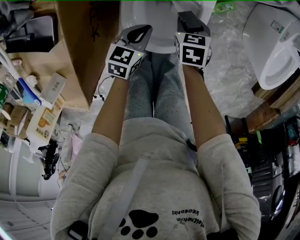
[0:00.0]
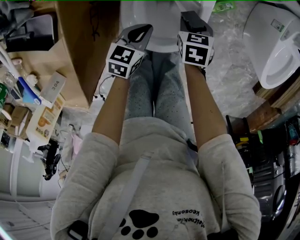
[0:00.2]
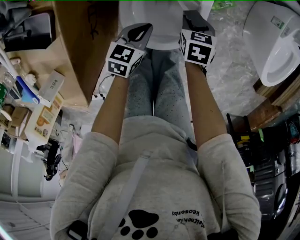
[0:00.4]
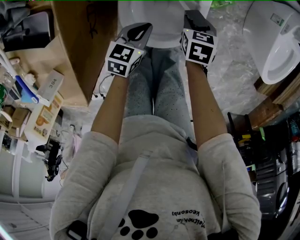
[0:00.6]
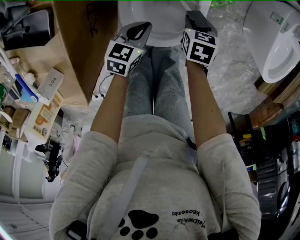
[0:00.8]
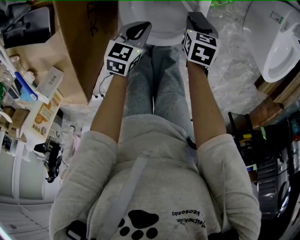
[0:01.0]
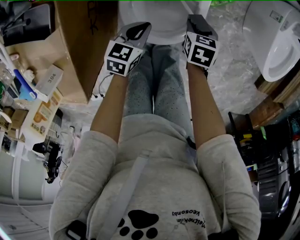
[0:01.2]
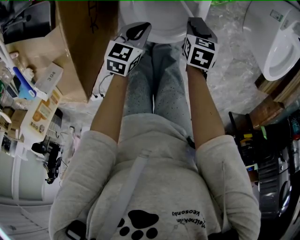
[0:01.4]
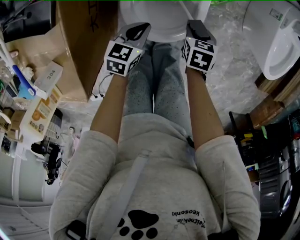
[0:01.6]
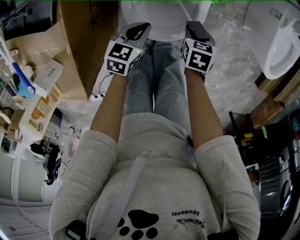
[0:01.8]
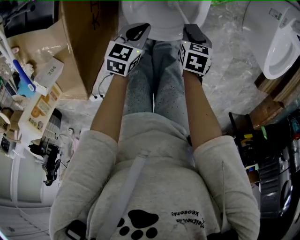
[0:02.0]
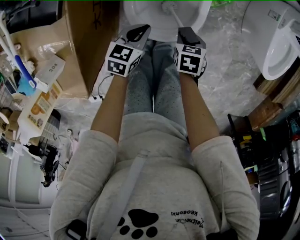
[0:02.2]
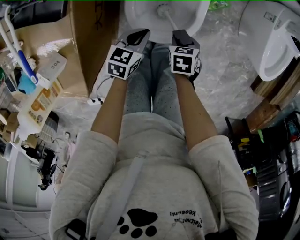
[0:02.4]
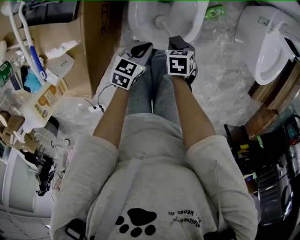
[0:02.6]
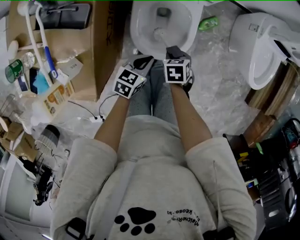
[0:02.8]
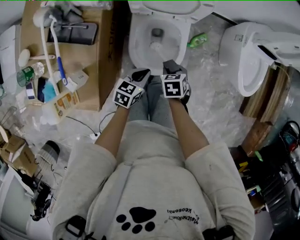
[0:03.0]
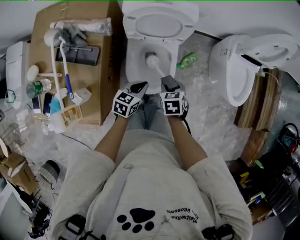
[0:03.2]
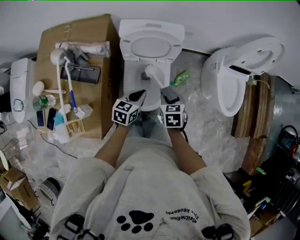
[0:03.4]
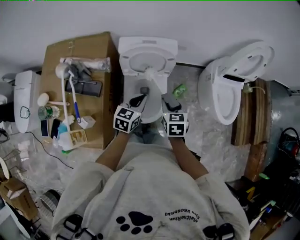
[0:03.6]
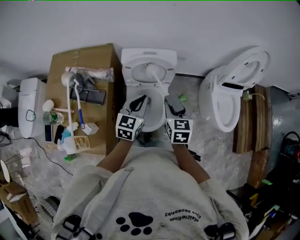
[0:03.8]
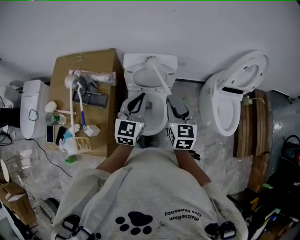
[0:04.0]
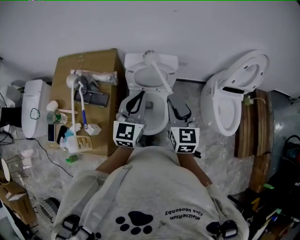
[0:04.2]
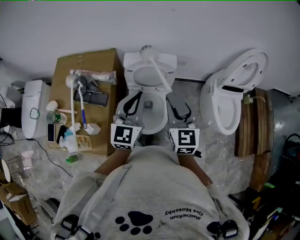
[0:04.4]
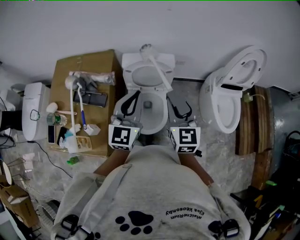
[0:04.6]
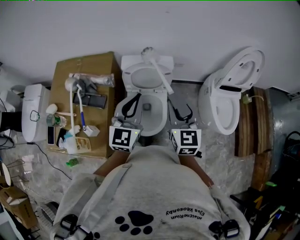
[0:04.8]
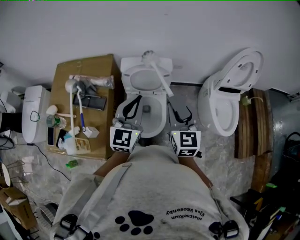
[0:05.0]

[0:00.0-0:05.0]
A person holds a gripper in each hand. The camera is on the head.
0.0 to 1.6 s: The left gripper changes place by some 5 cm. The right gripper is displaced to the right and backward by approximately 10 cm.
1.6 to 3.4 s: The grippers both shift upward by approximately 30 cm.
3.4 to 5.0 s: The two grippers go about 30 cm upward. The left gripper turns by about 40 degrees, while the right gripper angles its fingers upward, by approximately 40 degrees.

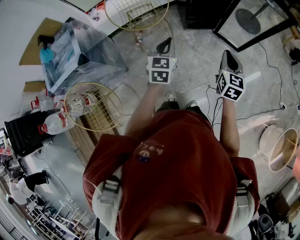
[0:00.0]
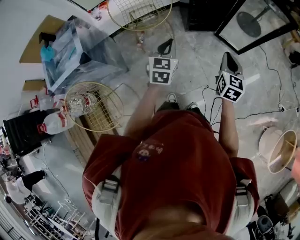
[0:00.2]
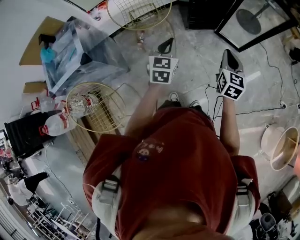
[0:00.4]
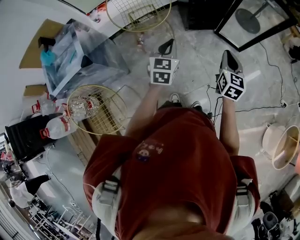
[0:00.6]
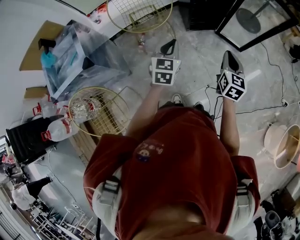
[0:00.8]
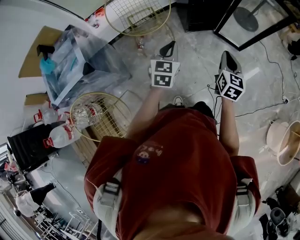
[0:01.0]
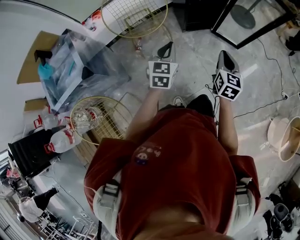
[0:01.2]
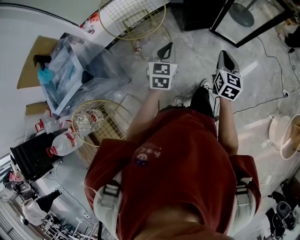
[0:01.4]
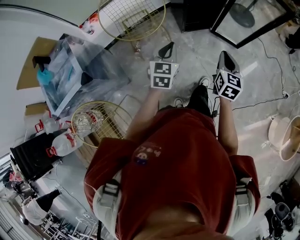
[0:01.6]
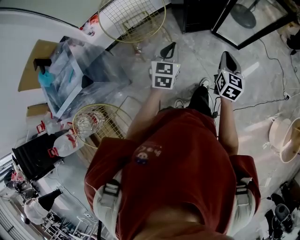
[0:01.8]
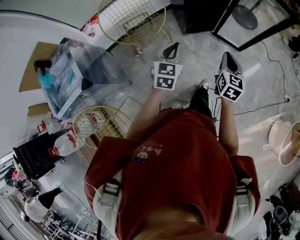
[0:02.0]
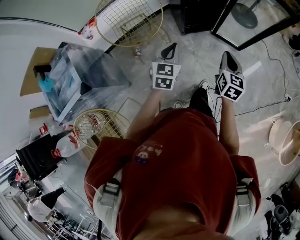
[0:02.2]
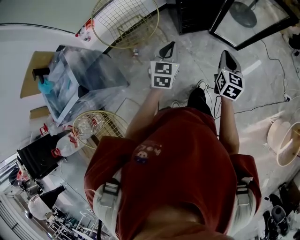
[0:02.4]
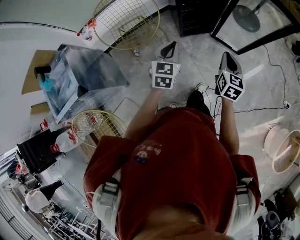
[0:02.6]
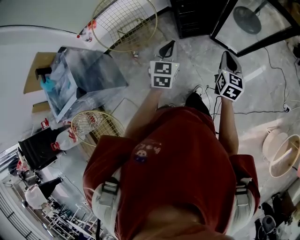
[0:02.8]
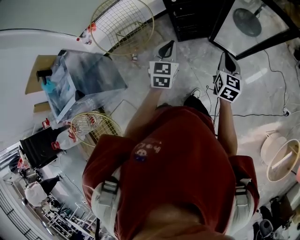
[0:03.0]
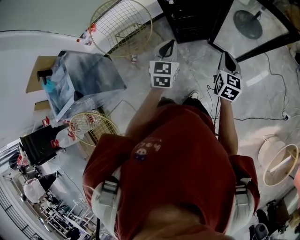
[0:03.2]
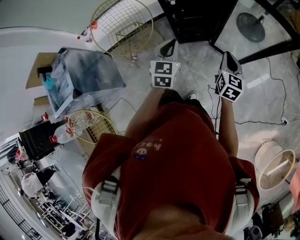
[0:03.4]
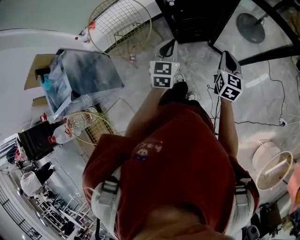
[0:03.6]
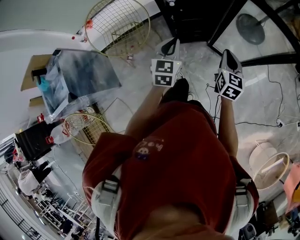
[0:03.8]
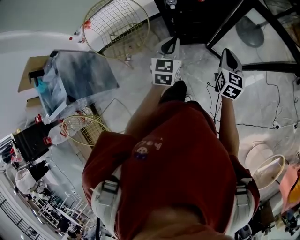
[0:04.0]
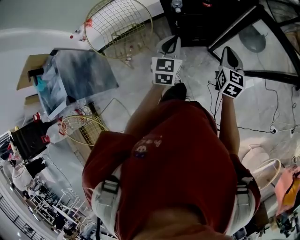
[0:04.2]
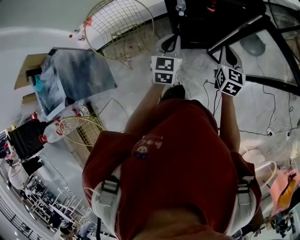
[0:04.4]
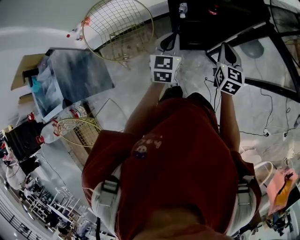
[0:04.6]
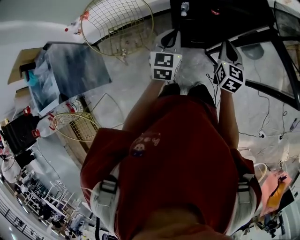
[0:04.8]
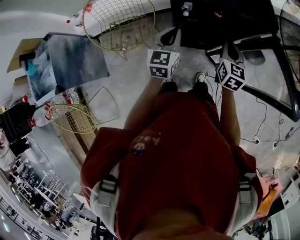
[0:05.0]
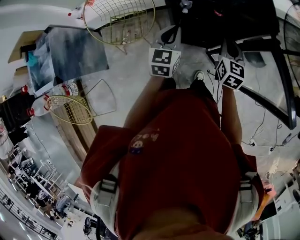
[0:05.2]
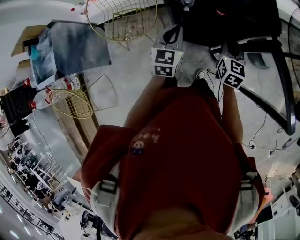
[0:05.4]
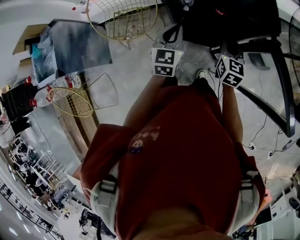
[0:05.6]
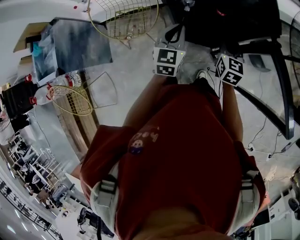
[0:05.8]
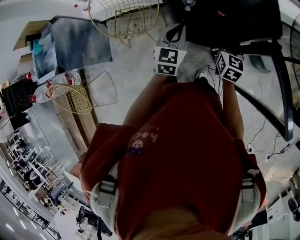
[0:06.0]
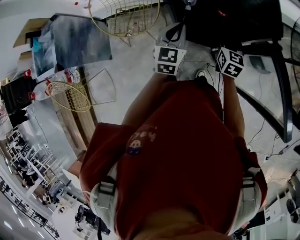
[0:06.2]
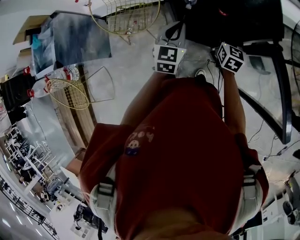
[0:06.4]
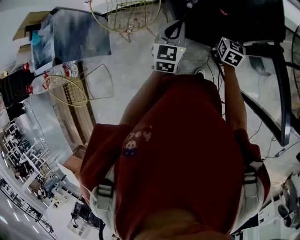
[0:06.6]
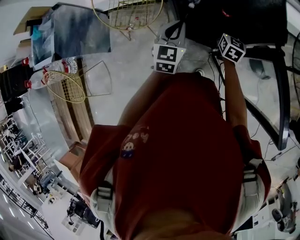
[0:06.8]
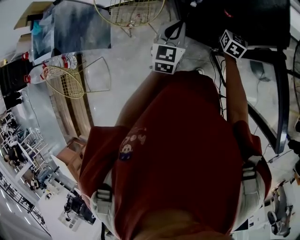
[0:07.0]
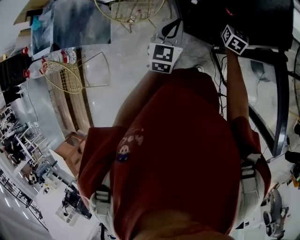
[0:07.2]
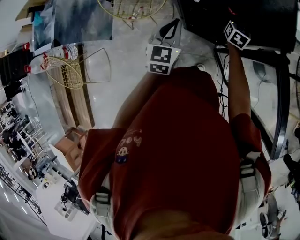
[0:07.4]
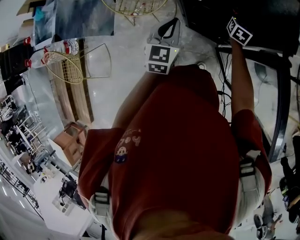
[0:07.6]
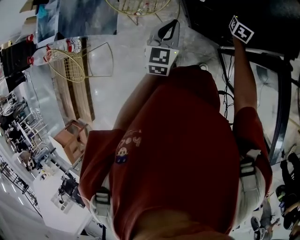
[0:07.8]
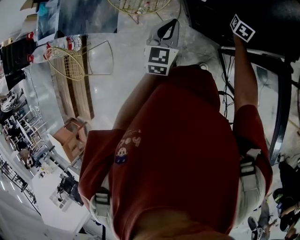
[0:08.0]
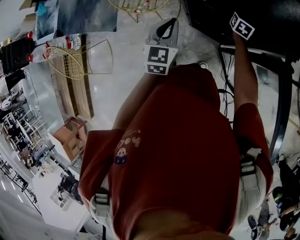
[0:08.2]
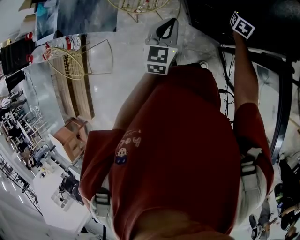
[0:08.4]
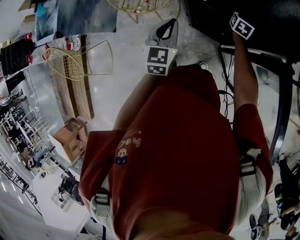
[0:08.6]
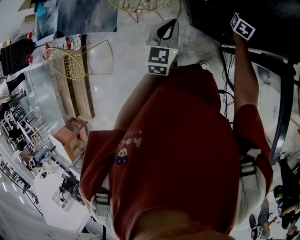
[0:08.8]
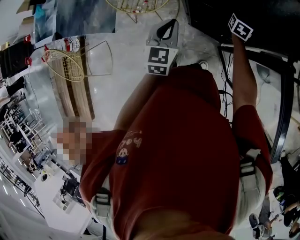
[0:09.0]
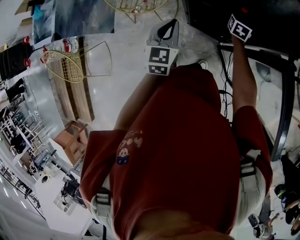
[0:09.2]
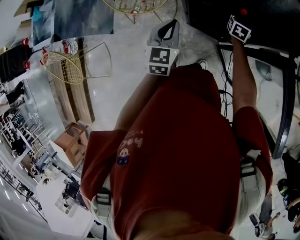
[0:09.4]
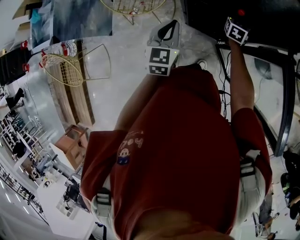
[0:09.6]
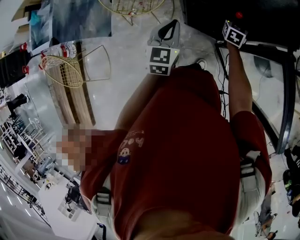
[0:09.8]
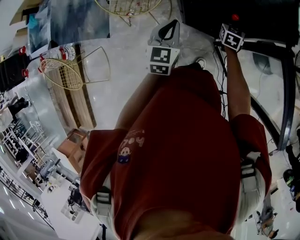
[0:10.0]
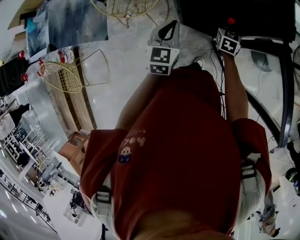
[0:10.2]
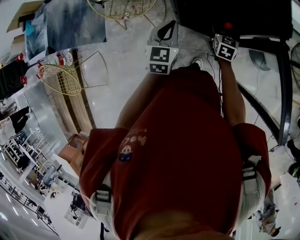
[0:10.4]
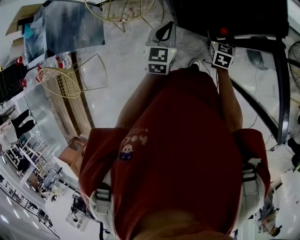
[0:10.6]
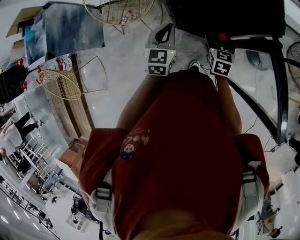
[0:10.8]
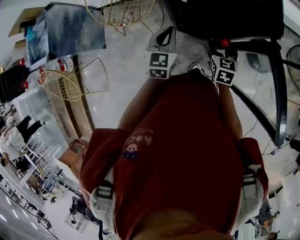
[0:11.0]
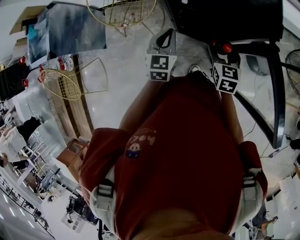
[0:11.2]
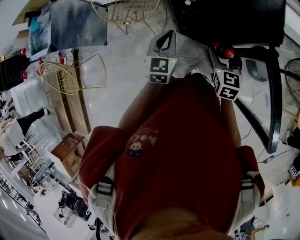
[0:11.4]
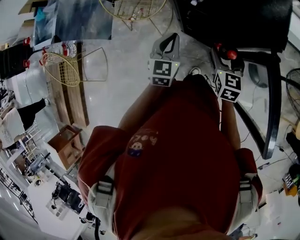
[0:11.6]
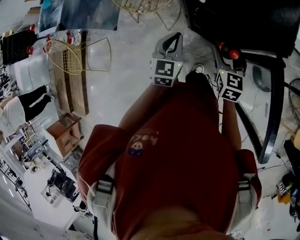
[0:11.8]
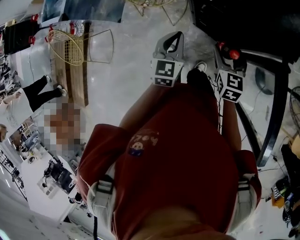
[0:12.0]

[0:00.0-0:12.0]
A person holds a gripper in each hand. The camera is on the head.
0.0 to 1.6 s: Both grippers travel together to the left, approximately 5 cm.
1.6 to 3.0 s: The grippers both shift forward and to the right by approximately 25 cm.
3.0 to 4.4 s: Both grippers travel together forward, about 20 cm.
4.4 to 6.0 s: The right gripper shifts approximately 15 cm forward and downward. The left gripper moves forward and to the right, some 10 cm.
6.0 to 7.6 s: The right gripper moves forward and downward, roughly 20 cm, and opens up.
7.6 to 9.0 s: The grippers stay close to where they were, moving slightly.
9.0 to 10.4 s: The right gripper goes some 15 cm backward.
10.4 to 12.0 s: The right gripper travels upward and backward by roughly 15 cm, and rotates approximately 20 degrees, while the left gripper heads backward, covering some 5 cm.

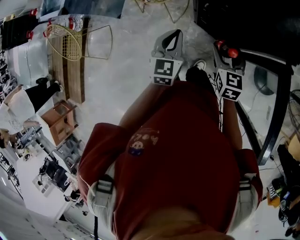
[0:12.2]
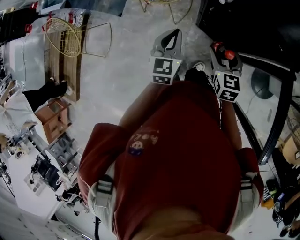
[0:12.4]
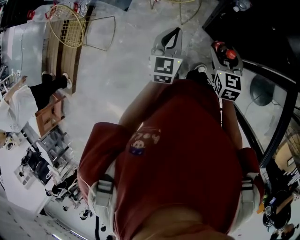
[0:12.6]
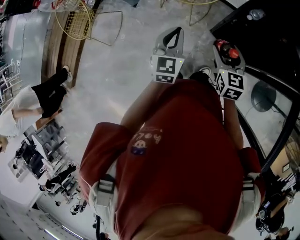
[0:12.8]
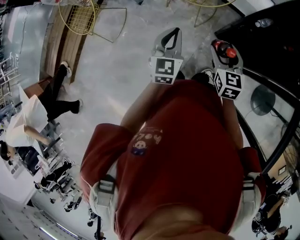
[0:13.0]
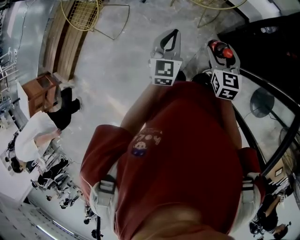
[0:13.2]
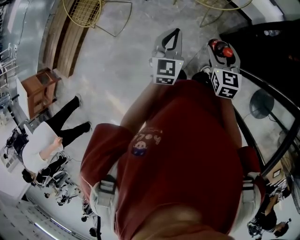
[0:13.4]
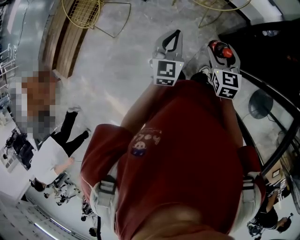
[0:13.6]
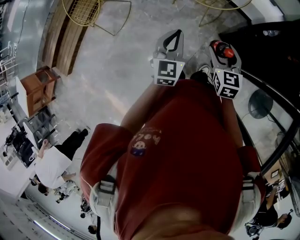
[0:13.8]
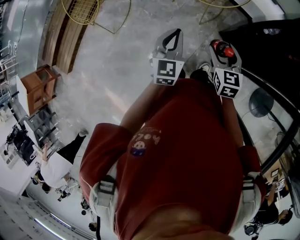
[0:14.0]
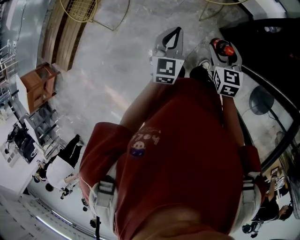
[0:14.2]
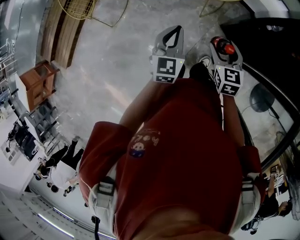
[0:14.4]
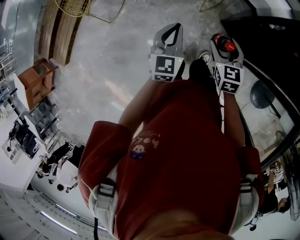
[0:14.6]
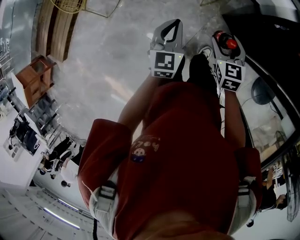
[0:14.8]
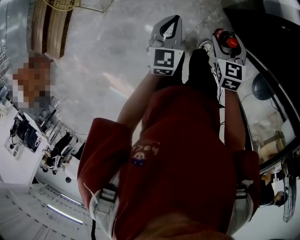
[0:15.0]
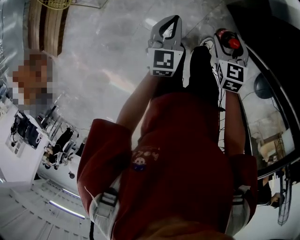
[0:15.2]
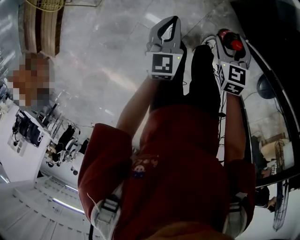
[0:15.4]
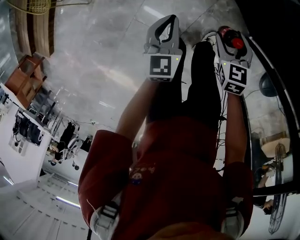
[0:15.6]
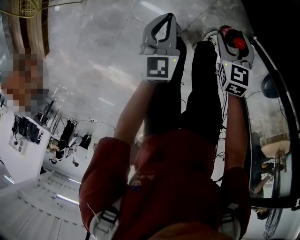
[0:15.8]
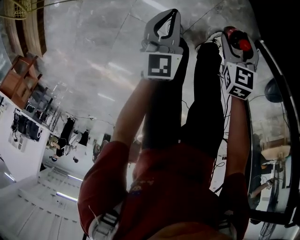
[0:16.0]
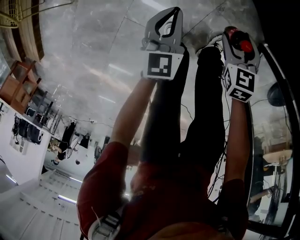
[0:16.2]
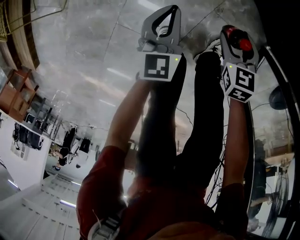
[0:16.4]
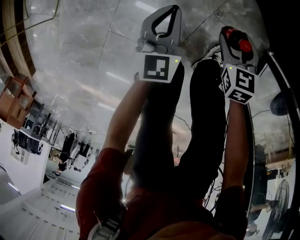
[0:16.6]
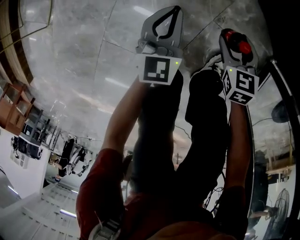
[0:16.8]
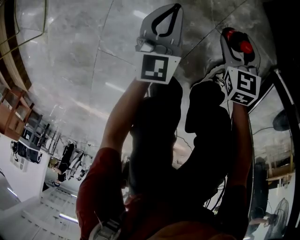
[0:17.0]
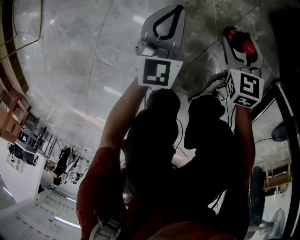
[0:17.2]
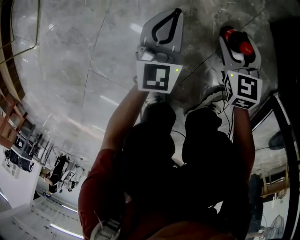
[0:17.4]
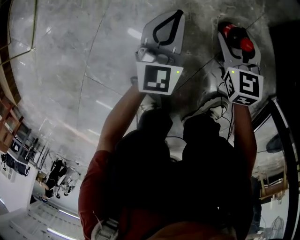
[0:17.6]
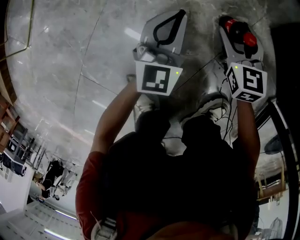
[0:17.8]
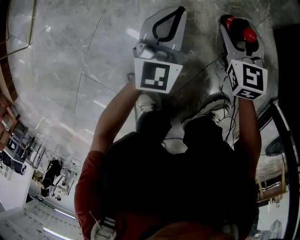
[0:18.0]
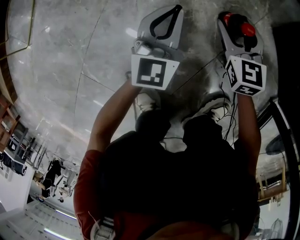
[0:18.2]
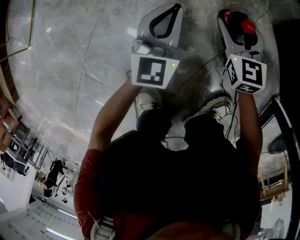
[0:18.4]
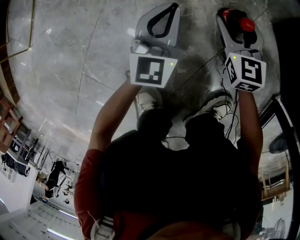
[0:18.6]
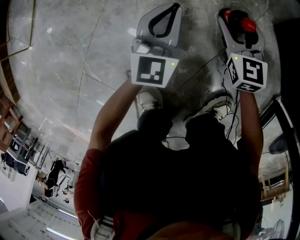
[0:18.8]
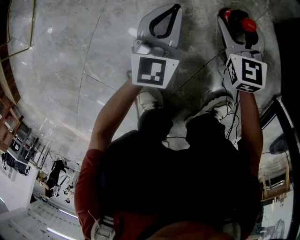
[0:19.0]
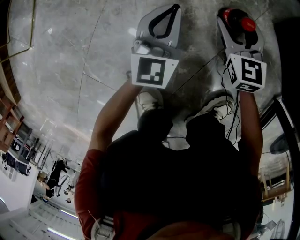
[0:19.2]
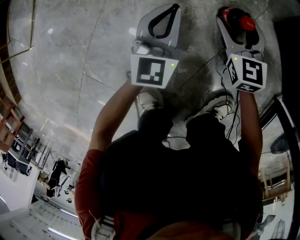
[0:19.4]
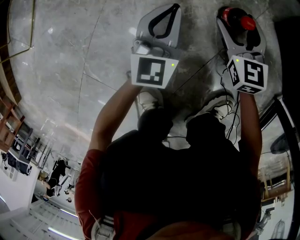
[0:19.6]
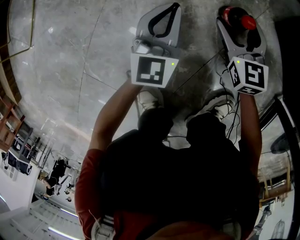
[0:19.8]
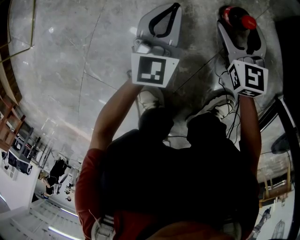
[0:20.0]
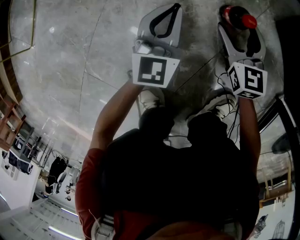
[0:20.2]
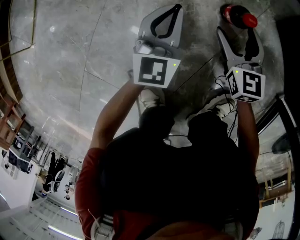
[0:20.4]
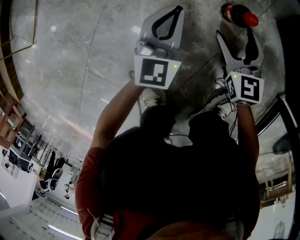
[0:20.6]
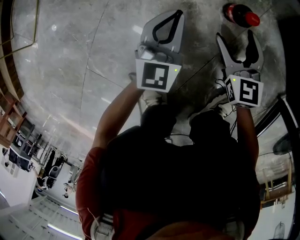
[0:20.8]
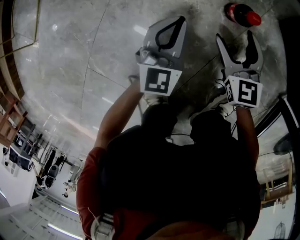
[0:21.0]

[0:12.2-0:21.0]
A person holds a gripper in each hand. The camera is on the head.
12.2 to 13.6 s: Both grippers move to the left, about 30 cm. The right gripper rotates about 20 degrees.
13.6 to 15.2 s: The grippers both shift downward by about 15 cm.
15.2 to 16.6 s: Both grippers move downward, some 50 cm.
16.6 to 18.0 s: The left gripper is displaced downward by roughly 20 cm, while the right gripper goes approximately 25 cm downward and forward, and changes its angle by roughly 20 degrees.
18.0 to 19.6 s: There are only small adjustments of the grippers.
19.6 to 21.0 s: The grippers both shift backward by approximately 5 cm.
